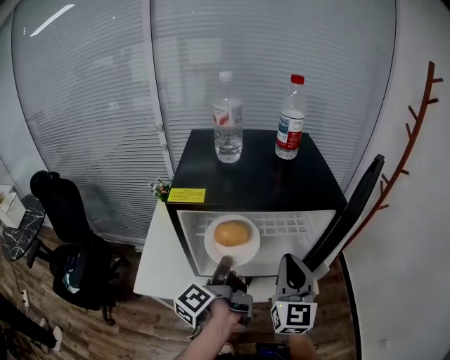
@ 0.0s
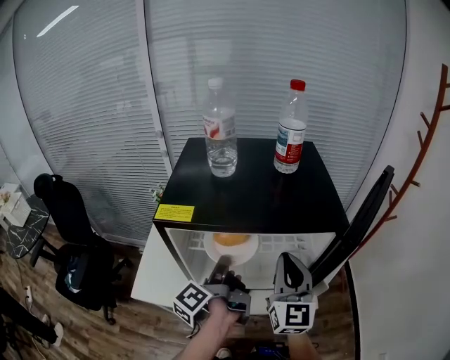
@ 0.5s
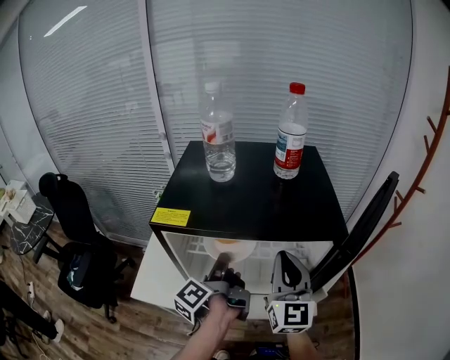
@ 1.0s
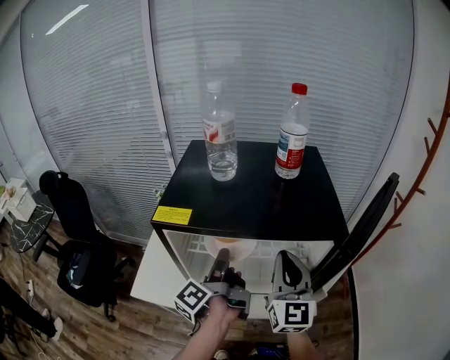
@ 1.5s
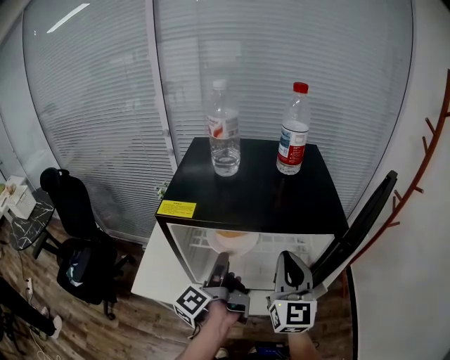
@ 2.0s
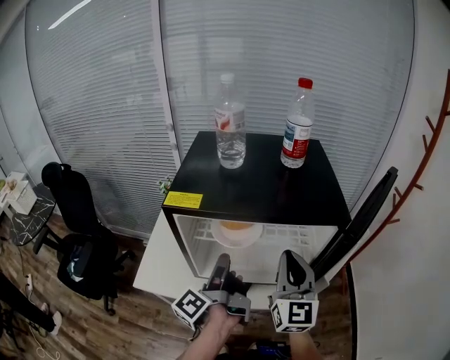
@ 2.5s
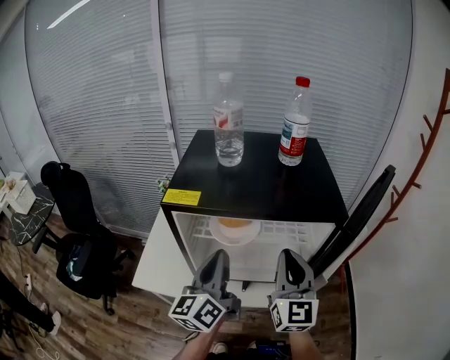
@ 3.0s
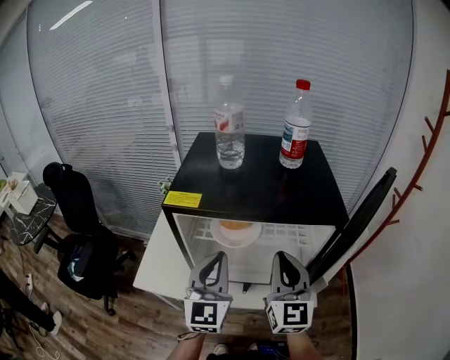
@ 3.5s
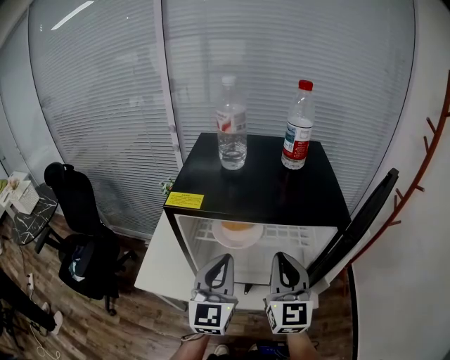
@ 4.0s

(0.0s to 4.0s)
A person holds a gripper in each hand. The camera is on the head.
0.0s - 2.0s: The right gripper moves roughly 5 cm.

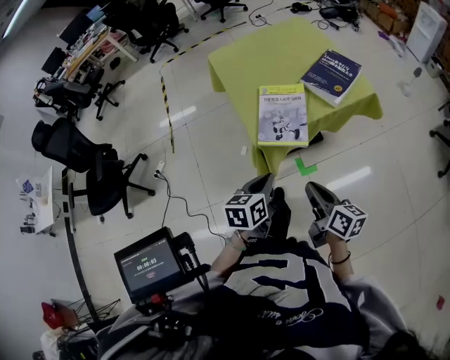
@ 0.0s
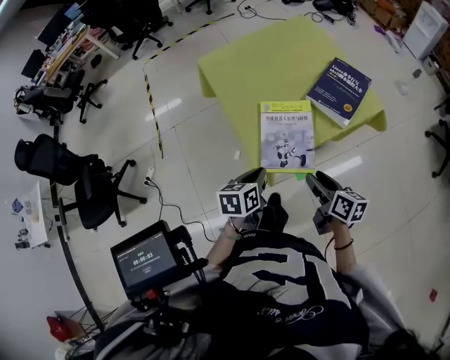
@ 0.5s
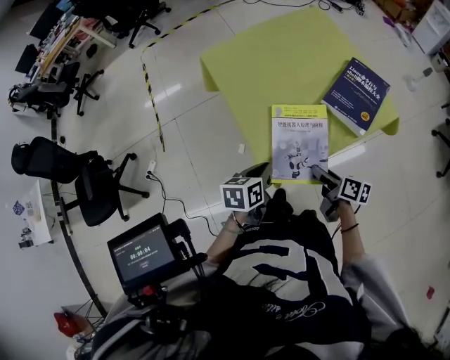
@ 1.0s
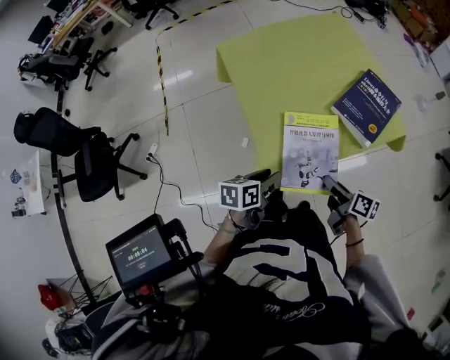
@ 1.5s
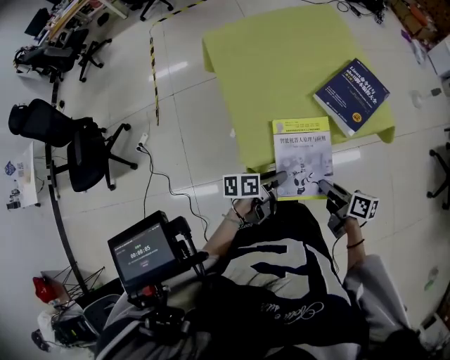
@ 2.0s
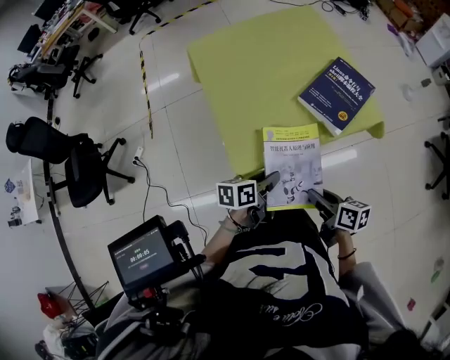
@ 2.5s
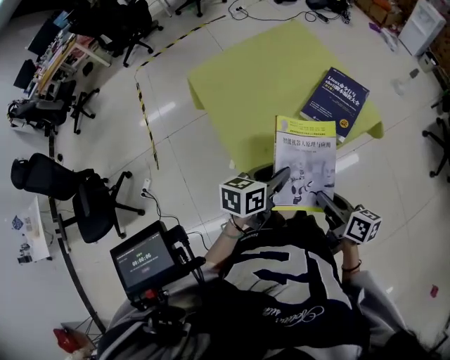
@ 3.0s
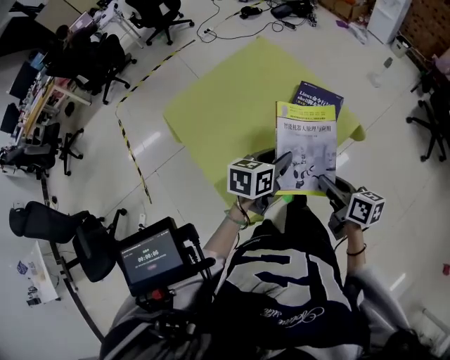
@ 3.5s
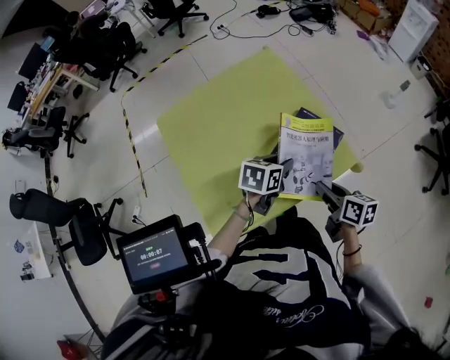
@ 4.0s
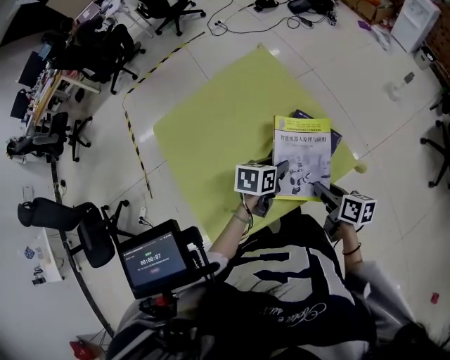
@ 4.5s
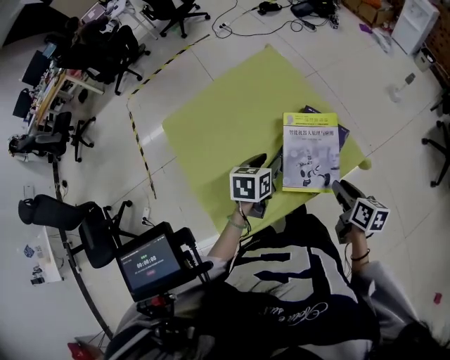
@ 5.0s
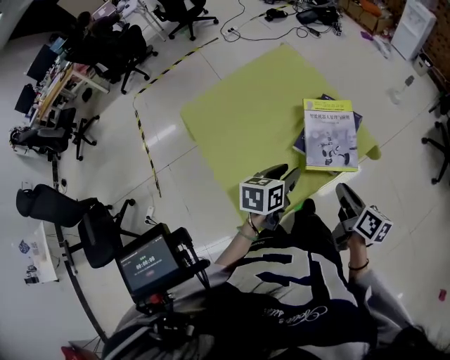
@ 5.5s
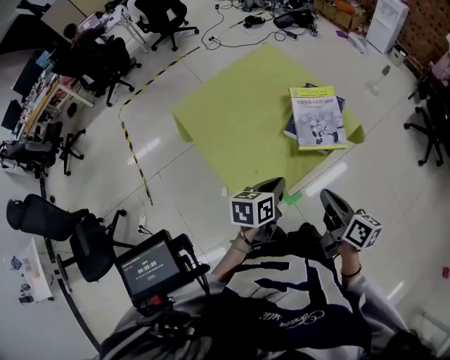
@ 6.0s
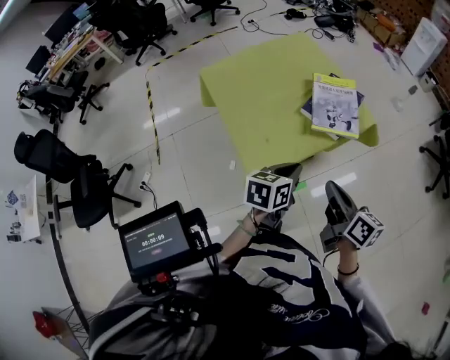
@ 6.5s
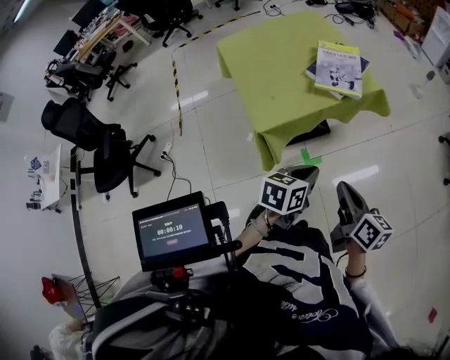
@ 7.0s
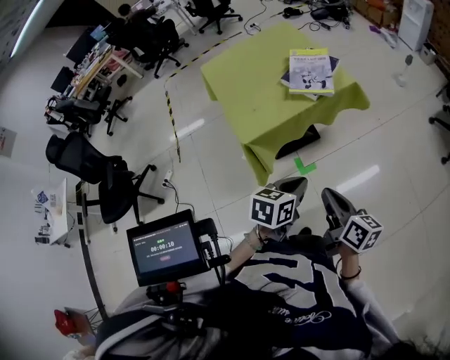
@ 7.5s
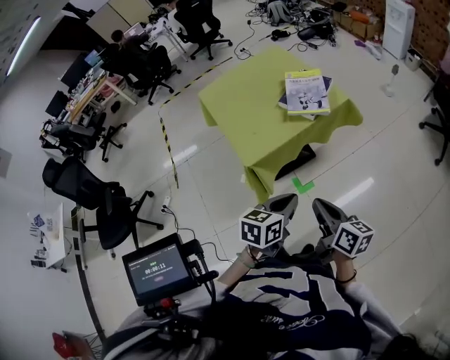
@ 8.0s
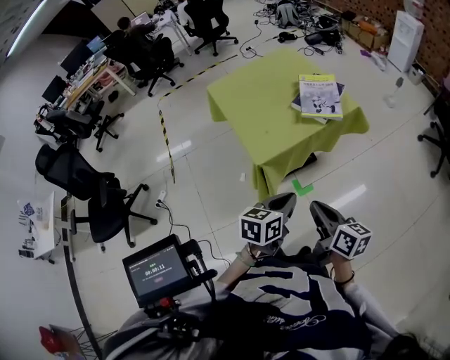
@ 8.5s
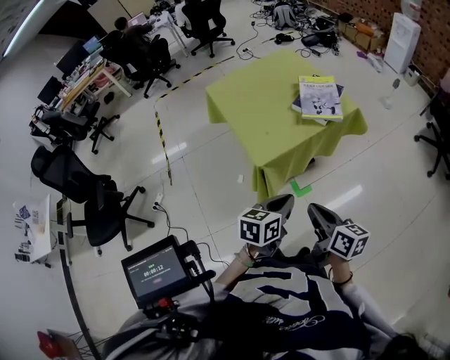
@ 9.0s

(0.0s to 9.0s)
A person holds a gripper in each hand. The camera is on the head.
0.0s - 2.0s: Both grippers travel together forward and downward, roughly 20 cm. The left gripper changes its angle by some 40 degrees, and opens up, while the right gripper changes its angle by about 20 degrees, and opens, then closes once more.
2.0s - 4.5s: The grippers both shift forward and to the right by about 30 cm. The left gripper turns by some 40 degrees.
4.5s - 7.0s: The pair of grippers is taken backward, roughly 40 cm. The left gripper closes. The right gripper closes.
7.0s - 9.0s: Both grippers move to the left and backward, roughly 10 cm.

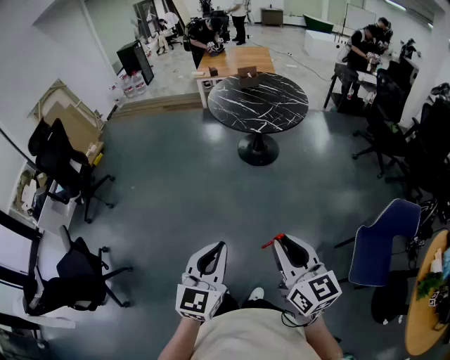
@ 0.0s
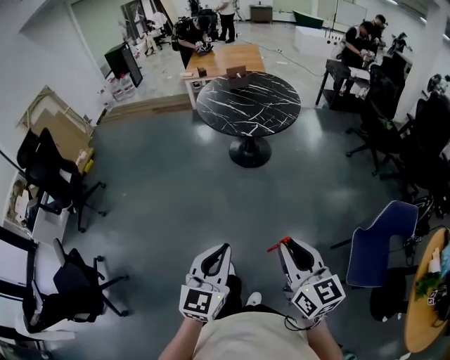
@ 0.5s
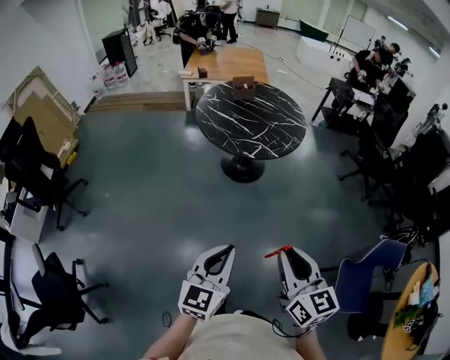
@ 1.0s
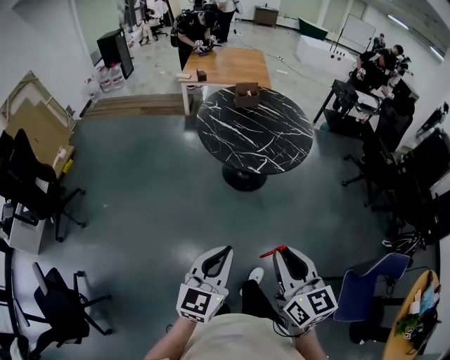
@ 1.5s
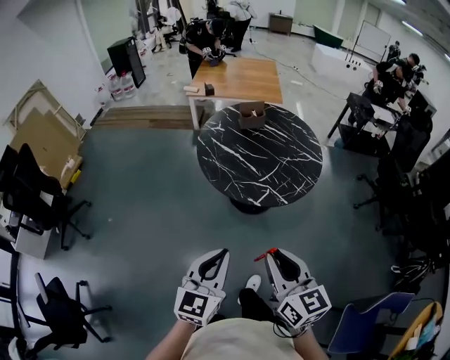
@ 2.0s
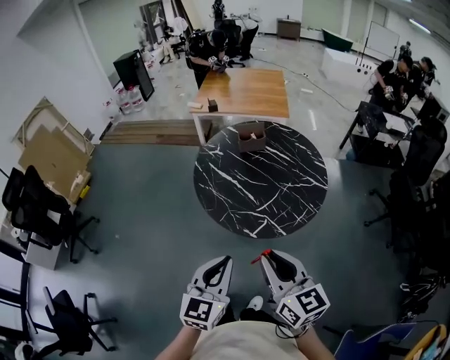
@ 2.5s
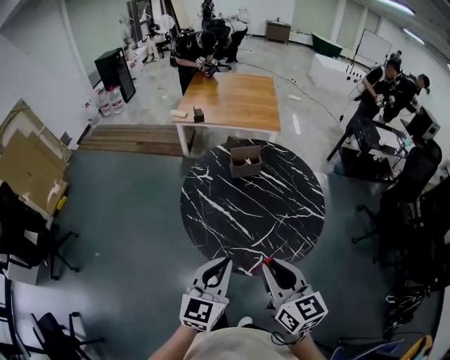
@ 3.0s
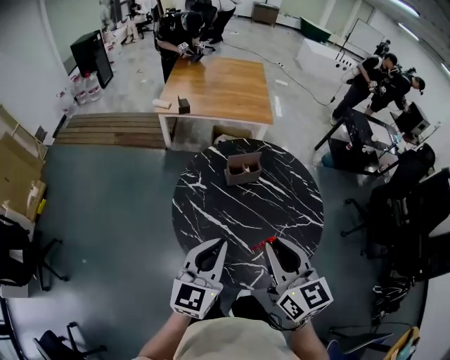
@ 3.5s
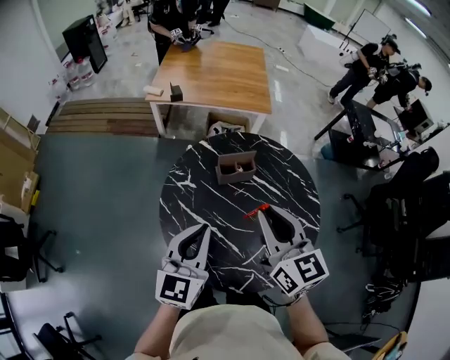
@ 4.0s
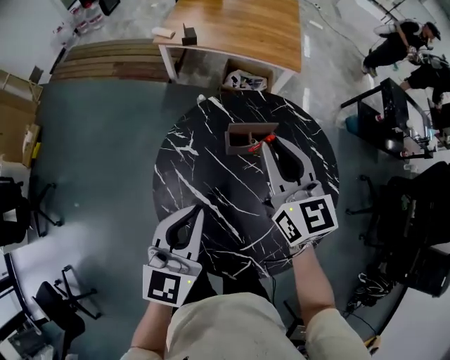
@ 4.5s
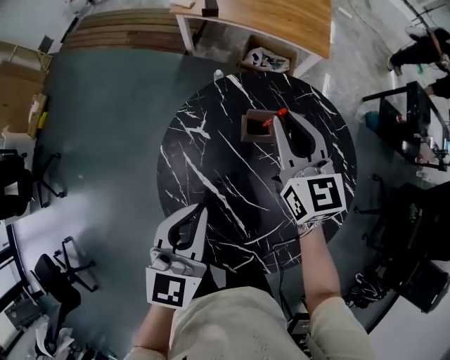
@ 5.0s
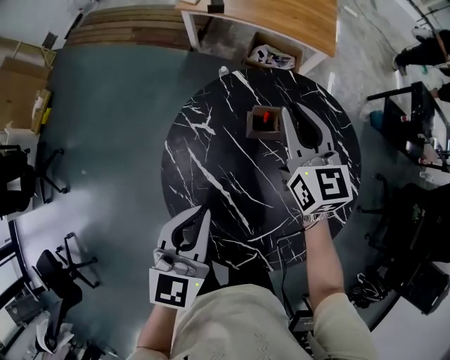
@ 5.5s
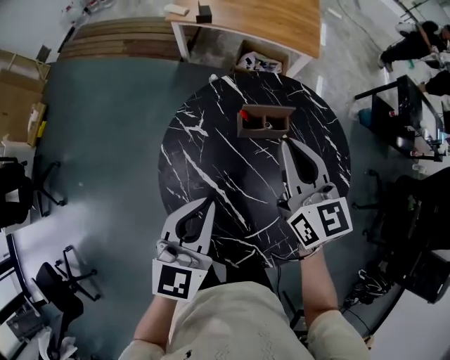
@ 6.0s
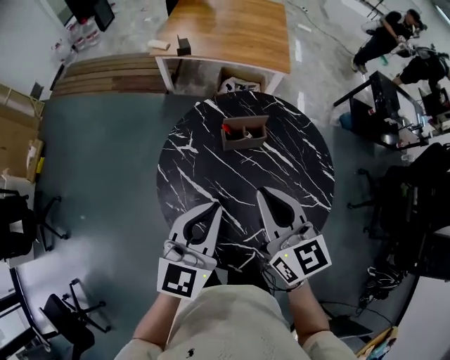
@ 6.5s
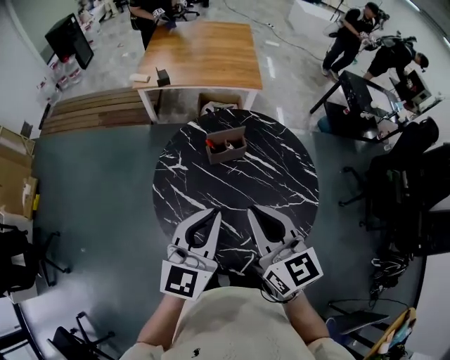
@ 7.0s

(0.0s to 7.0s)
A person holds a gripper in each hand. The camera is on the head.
0.0s - 2.0s: Both grippers are carried forward, roughly 50 cm.
2.0s - 3.5s: The pair of grippers is taken forward, roughly 50 cm.
3.5s - 5.0s: The left gripper goes some 20 cm forward and downward, and changes its angle by roughly 20 degrees, while the right gripper shifts some 40 cm forward and downward.
5.0s - 7.0s: The right gripper moves backward and upward, some 30 cm. The left gripper shifts roughly 15 cm upward, backward and to the right, and rotates about 30 degrees.

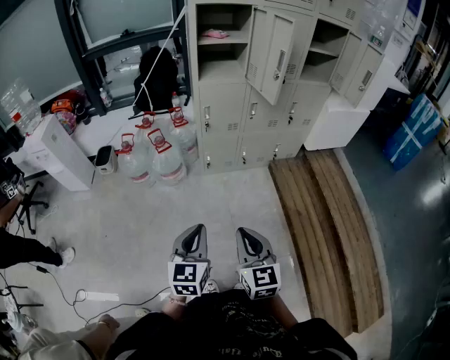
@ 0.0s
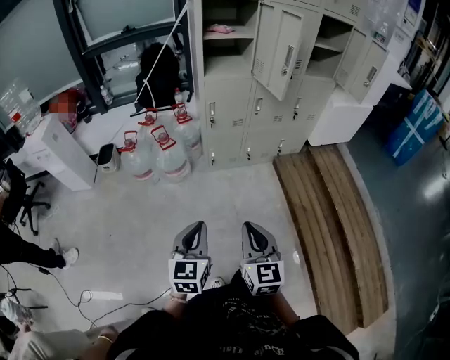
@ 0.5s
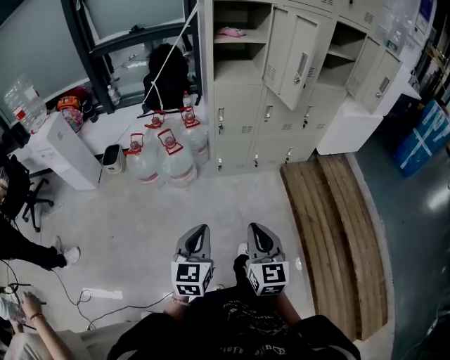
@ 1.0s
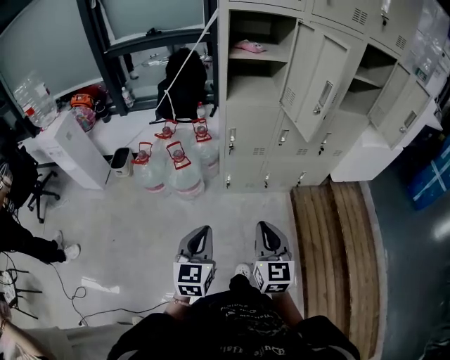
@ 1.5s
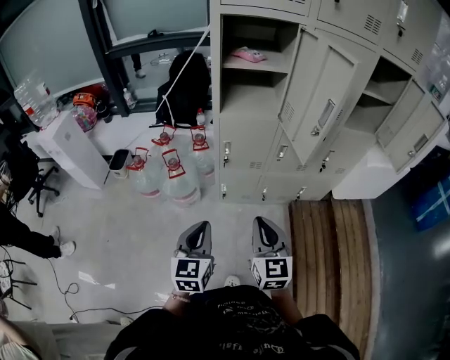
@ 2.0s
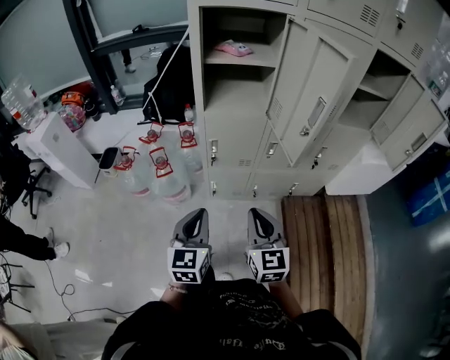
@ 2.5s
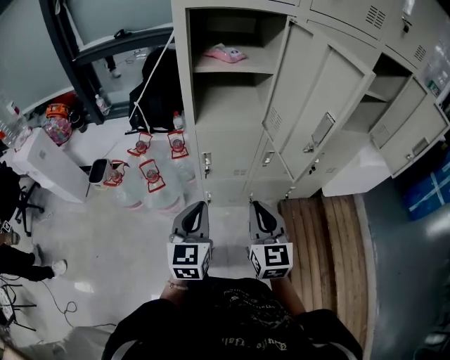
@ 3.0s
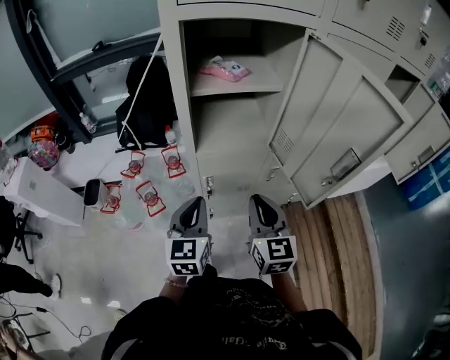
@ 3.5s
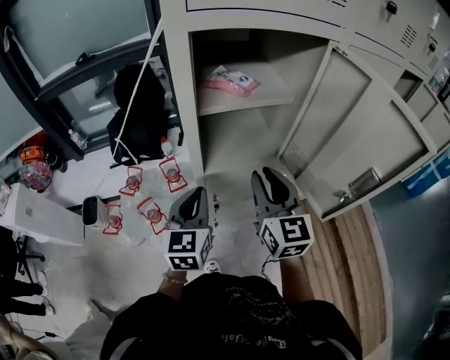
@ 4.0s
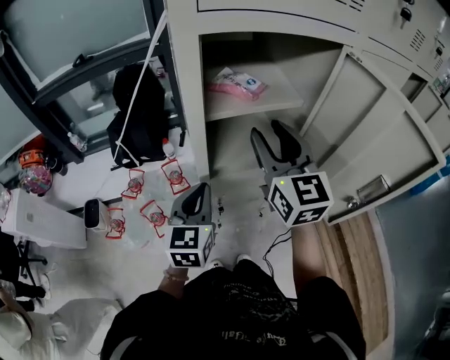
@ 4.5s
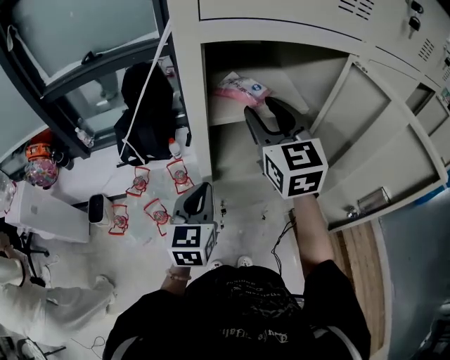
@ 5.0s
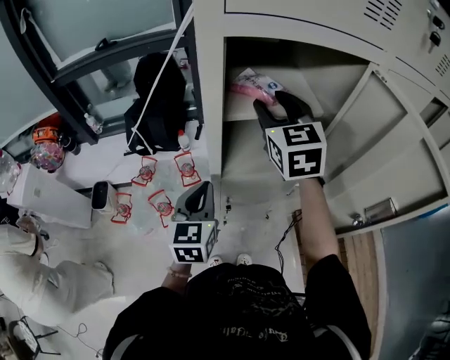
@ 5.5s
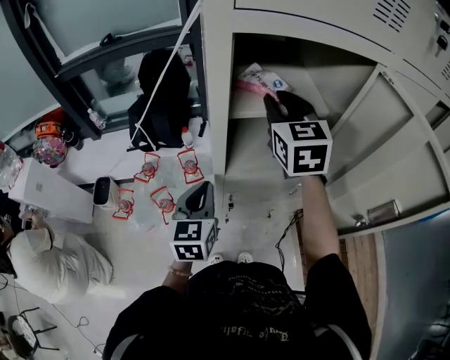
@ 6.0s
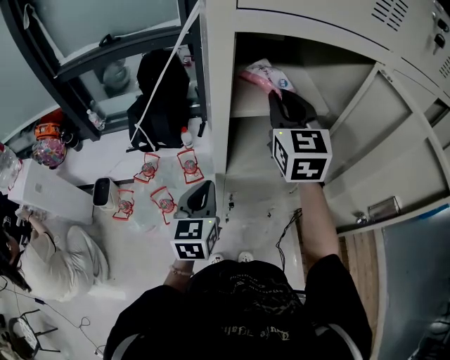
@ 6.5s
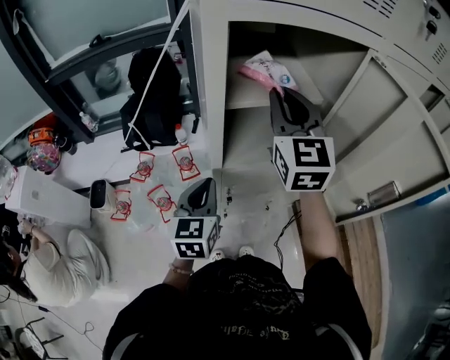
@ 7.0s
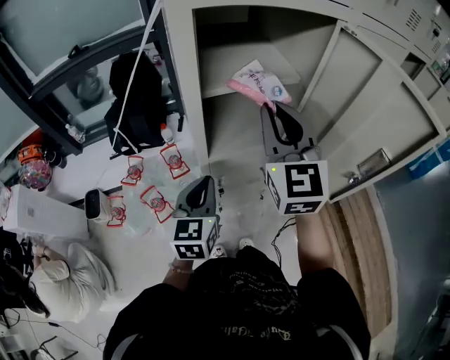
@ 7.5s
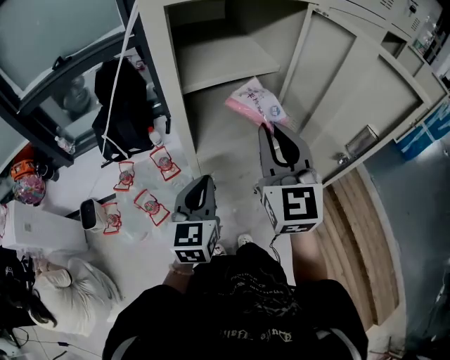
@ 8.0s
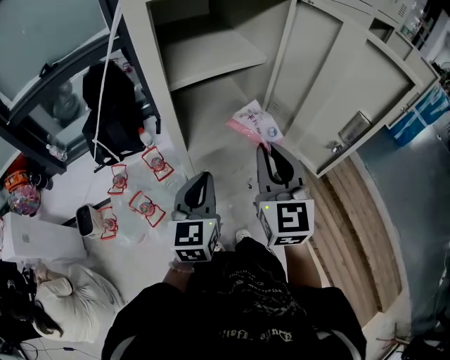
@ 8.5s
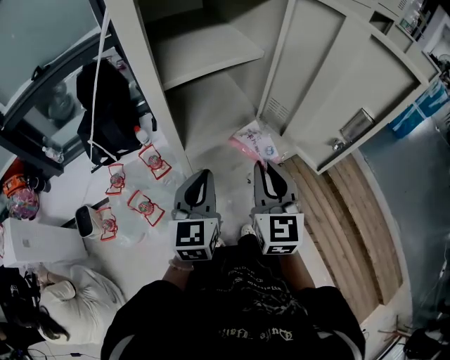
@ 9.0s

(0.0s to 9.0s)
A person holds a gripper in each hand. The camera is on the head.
0.0s - 2.0s: Both grippers move forward, some 30 cm.
2.0s - 4.5s: The two grippers travel together, forward, roughly 40 cm. The right gripper travels upward by approximately 20 cm, and opens.
4.5s - 7.0s: The right gripper shifts roughly 5 cm forward, and closes up.
7.0s - 9.0s: The left gripper moves to the right, some 10 cm, while the right gripper heads backward, downward and to the right, covering about 25 cm, and rotates roughly 20 degrees.
